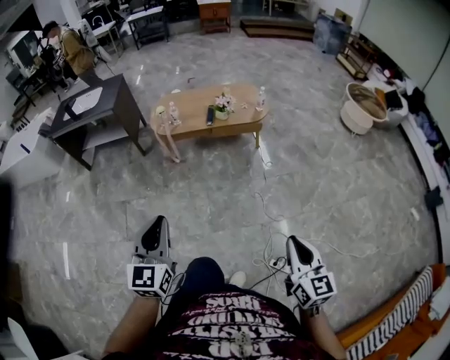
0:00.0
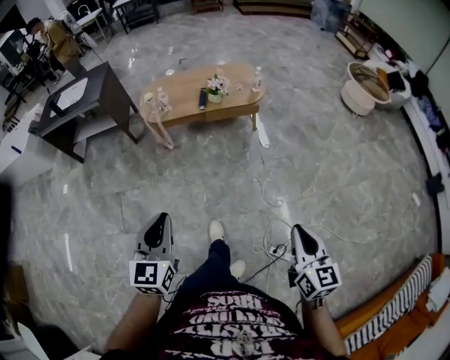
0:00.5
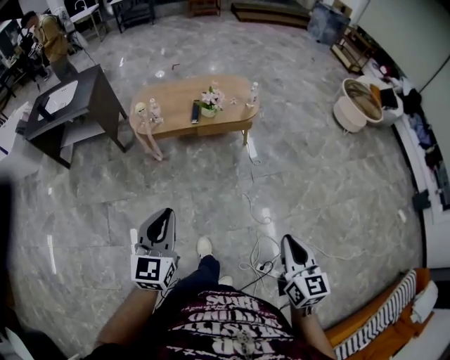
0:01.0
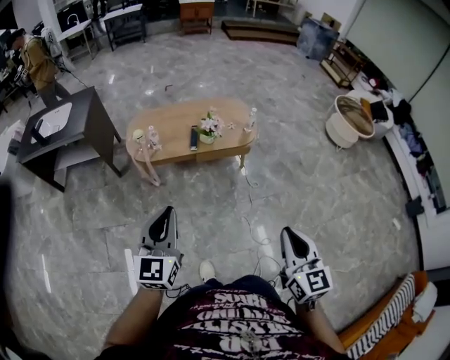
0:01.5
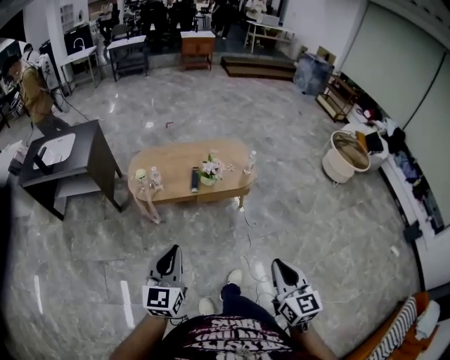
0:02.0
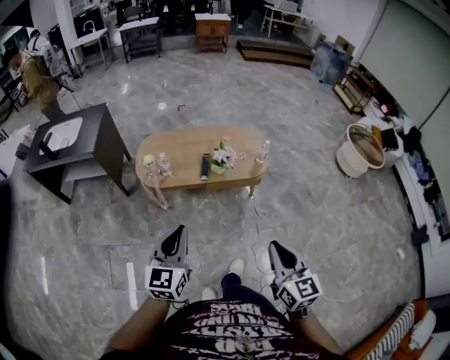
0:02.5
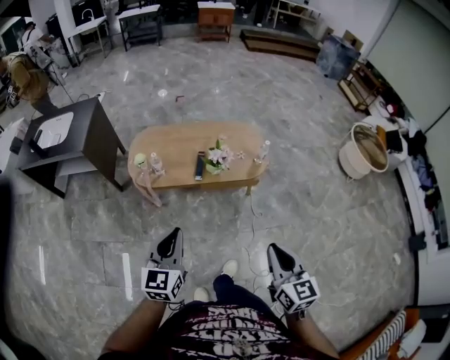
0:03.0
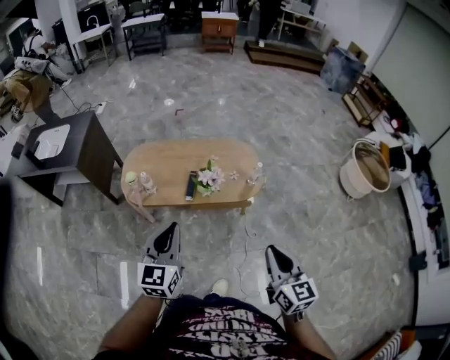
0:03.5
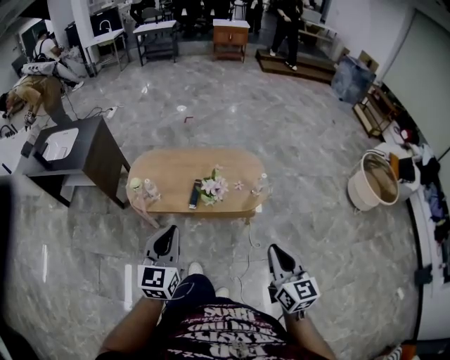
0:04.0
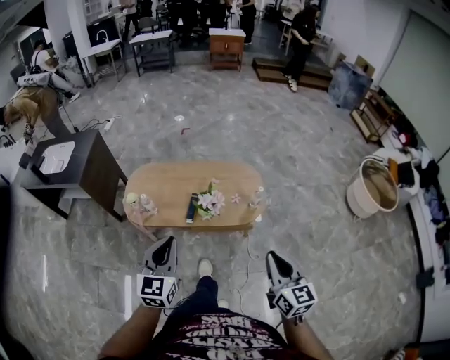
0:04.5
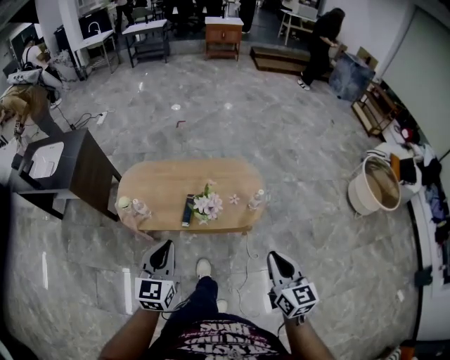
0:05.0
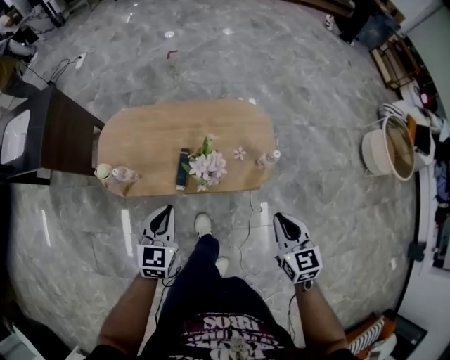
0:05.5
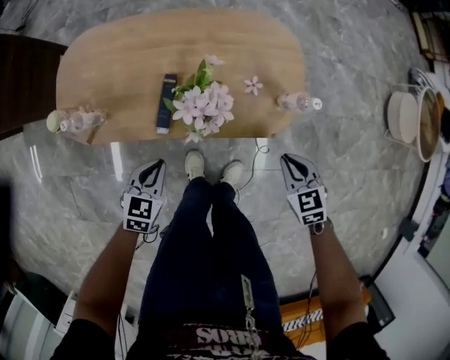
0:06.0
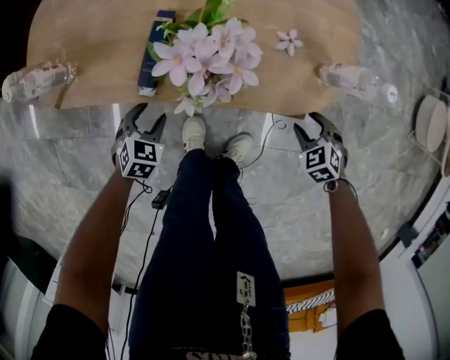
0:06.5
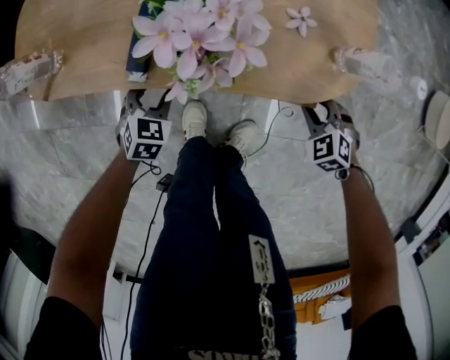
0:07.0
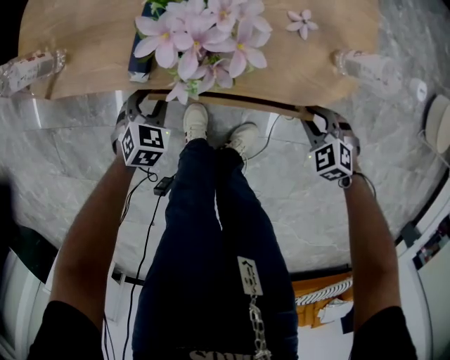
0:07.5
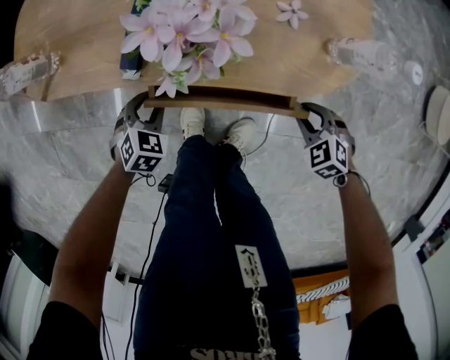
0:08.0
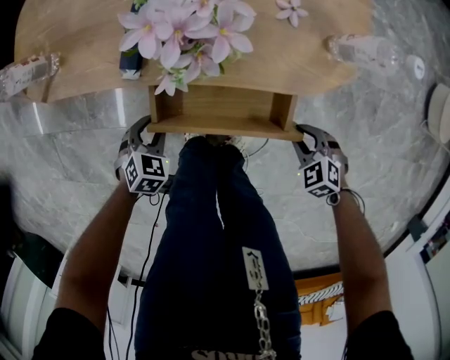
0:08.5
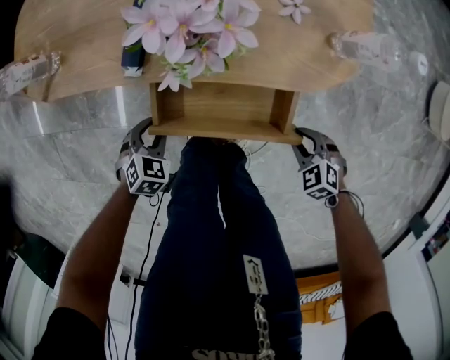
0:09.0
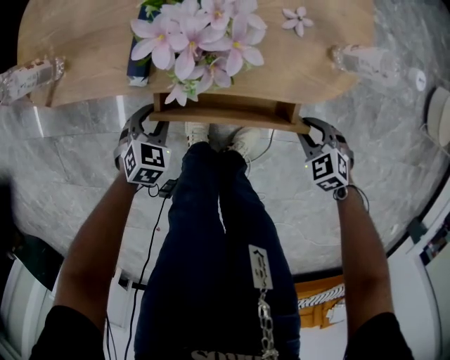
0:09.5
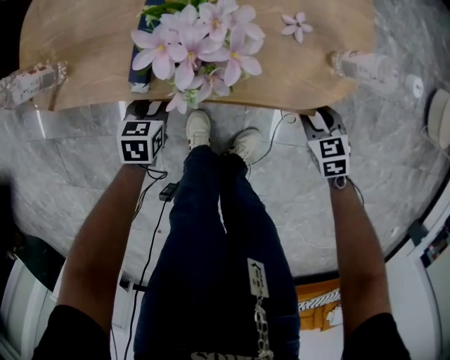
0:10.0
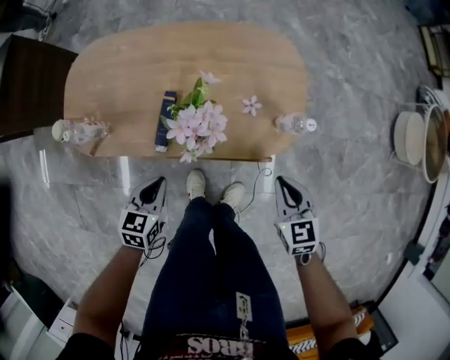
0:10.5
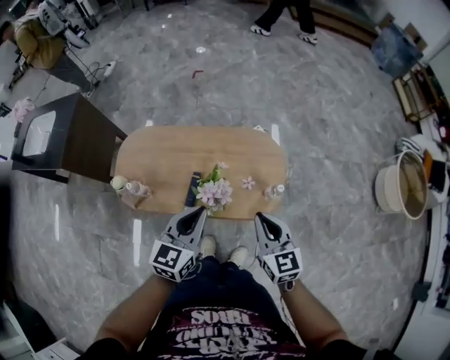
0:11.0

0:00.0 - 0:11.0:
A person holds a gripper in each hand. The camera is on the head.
0:00.0 - 0:02.0: Both grippers travel together forward, some 30 cm.
0:02.0 - 0:03.5: The right gripper goes roughly 25 cm forward. Meanwhile the left gripper travels forward and to the right by some 25 cm.
0:03.5 - 0:05.5: Both grippers move forward and downward, about 30 cm. The left gripper changes its angle by some 20 degrees.
0:05.5 - 0:07.5: The grippers both shift downward by roughly 50 cm. The left gripper points its fingers about 30 degrees further downward, and opens up, while the right gripper tips its fingers downward by about 30 degrees, and opens, then closes again.
0:07.5 - 0:09.0: Both grippers travel together backward, about 10 cm.
0:09.0 - 0:11.0: Both grippers travel together upward, approximately 60 cm. The right gripper points its fingers roughly 50 degrees further upward, while the left gripper points its fingers approximately 50 degrees further upward, and closes its fingers.

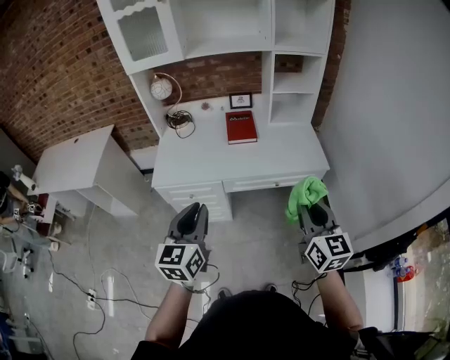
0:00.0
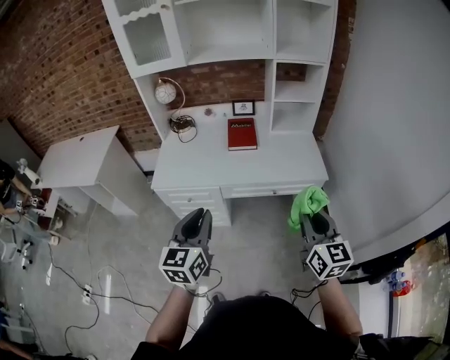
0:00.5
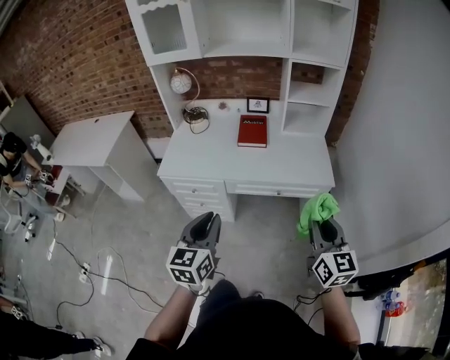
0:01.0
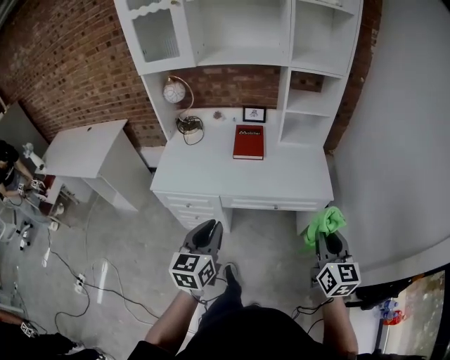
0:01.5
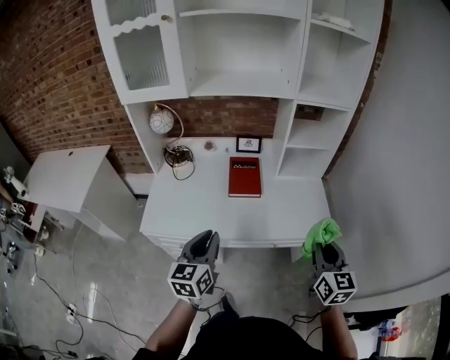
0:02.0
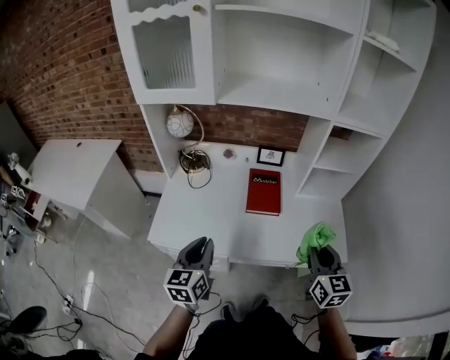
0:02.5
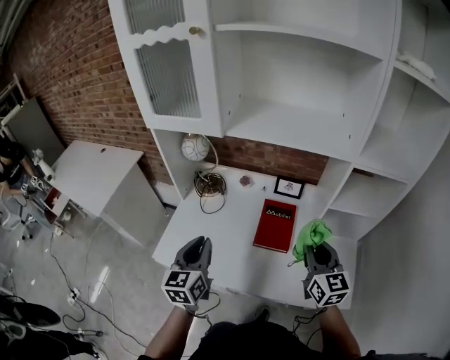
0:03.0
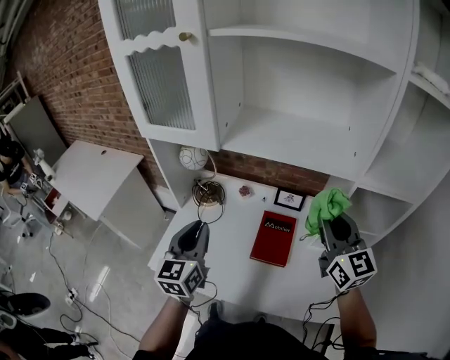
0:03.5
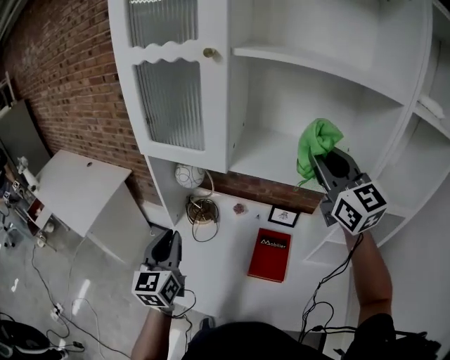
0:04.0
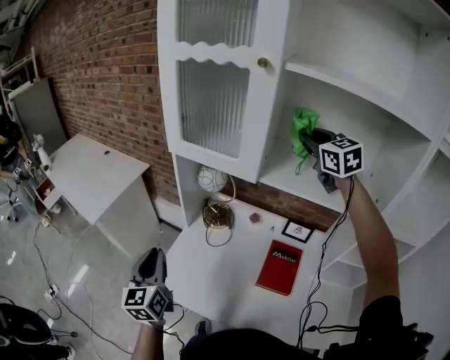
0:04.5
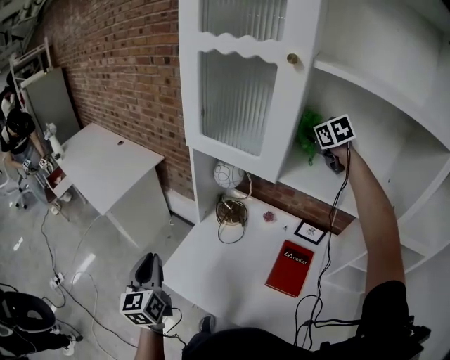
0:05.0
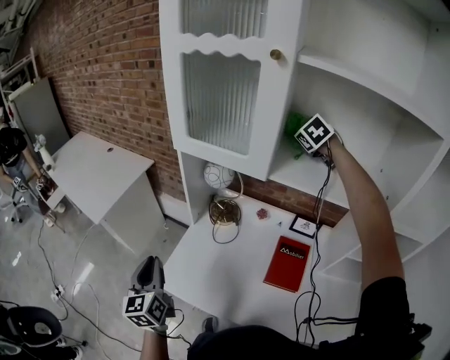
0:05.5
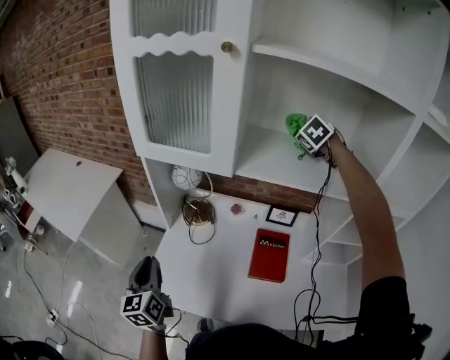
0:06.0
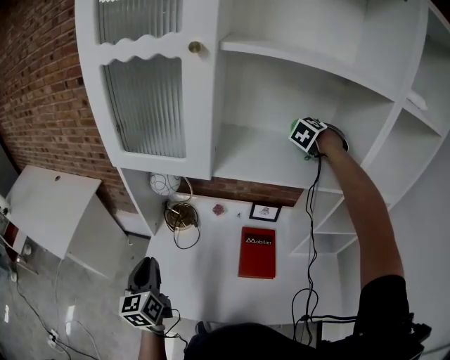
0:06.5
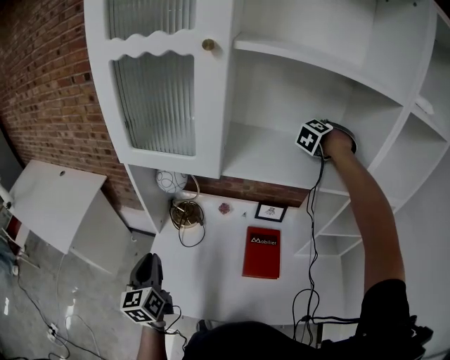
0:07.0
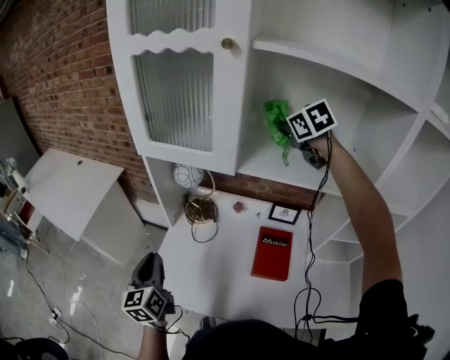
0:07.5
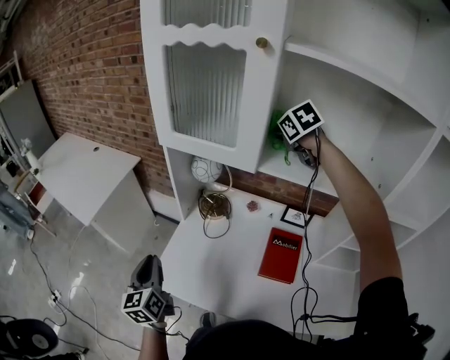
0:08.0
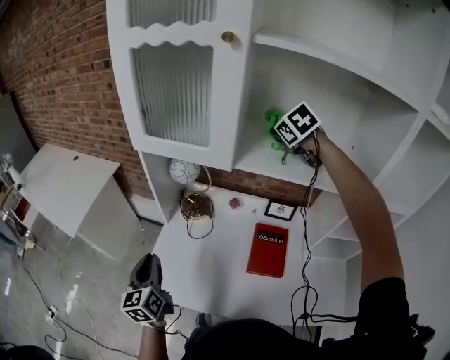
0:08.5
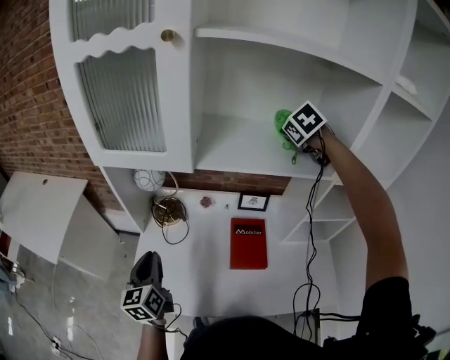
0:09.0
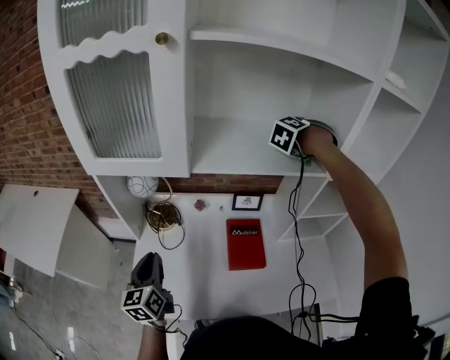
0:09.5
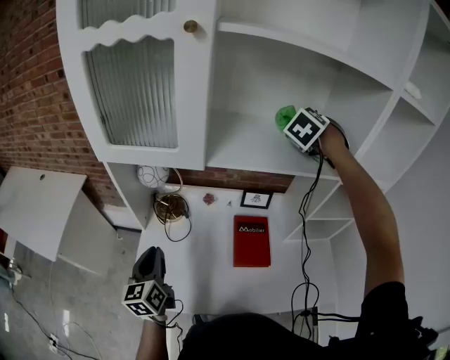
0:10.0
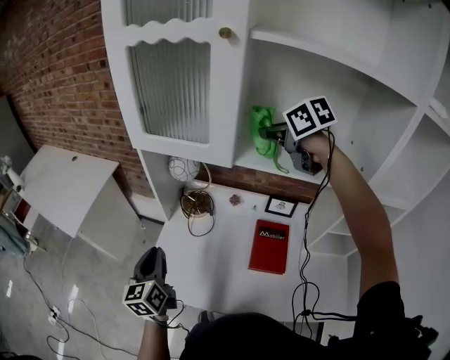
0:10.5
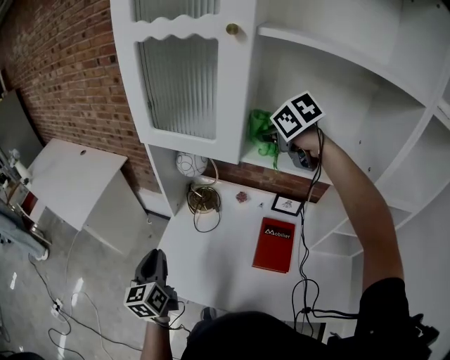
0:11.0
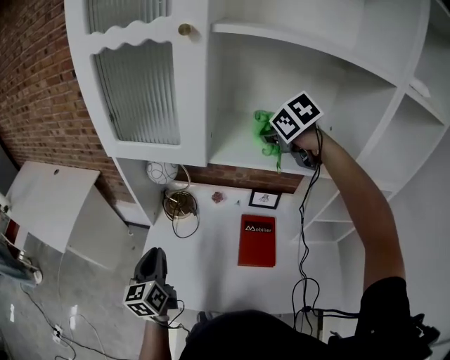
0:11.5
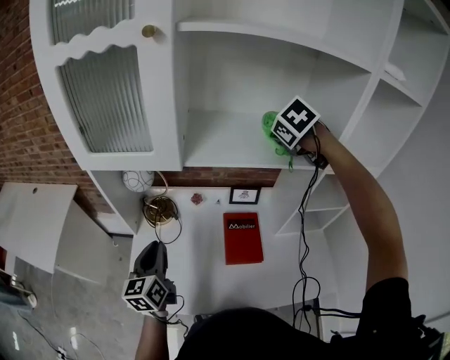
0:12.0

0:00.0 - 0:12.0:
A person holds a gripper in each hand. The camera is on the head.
0:00.0 - 0:02.0: The two grippers go approximately 20 cm forward.
0:02.0 - 0:04.0: The left gripper ends up roughly 35 cm from where it was, and swivels approximately 30 degrees, while the right gripper ends up roughly 60 cm from where it was, and swivels approximately 40 degrees.
0:04.0 - 0:06.0: The left gripper goes roughly 15 cm to the left and downward. Meanwhile the right gripper goes approximately 25 cm forward and downward, and points its fingers roughly 50 degrees further downward.
0:06.0 - 0:08.0: The right gripper shifts by some 15 cm, and rotates roughly 30 degrees.
0:08.0 - 0:10.0: The right gripper shifts by some 25 cm, and swivels about 40 degrees, while the left gripper moves some 15 cm, and rotates approximately 20 degrees.
0:10.0 - 0:12.0: The right gripper turns by approximately 30 degrees.

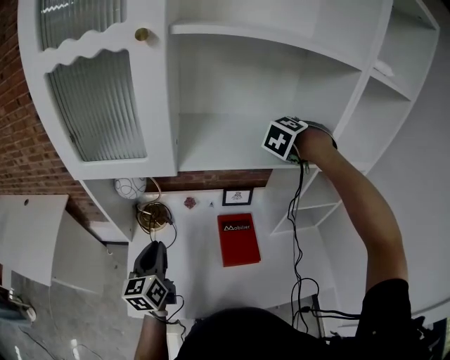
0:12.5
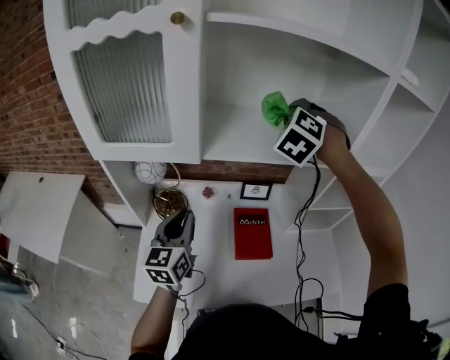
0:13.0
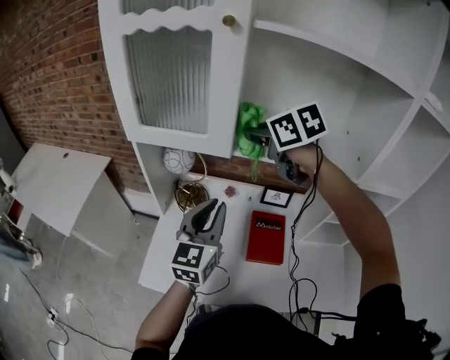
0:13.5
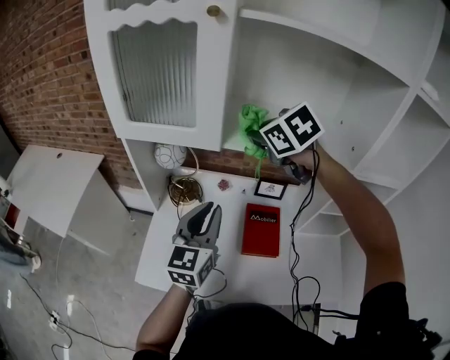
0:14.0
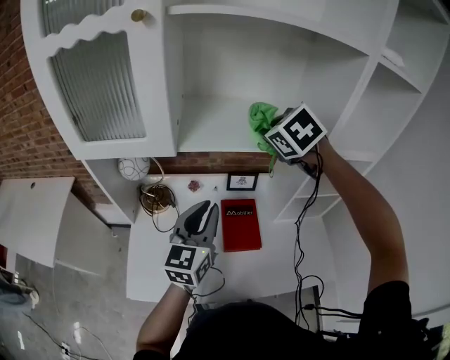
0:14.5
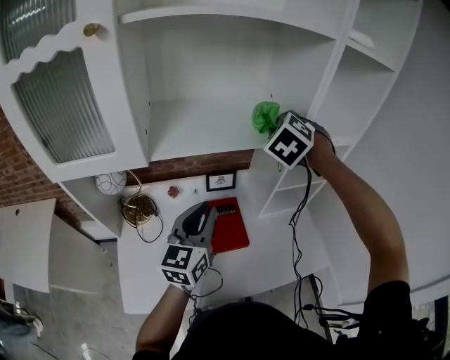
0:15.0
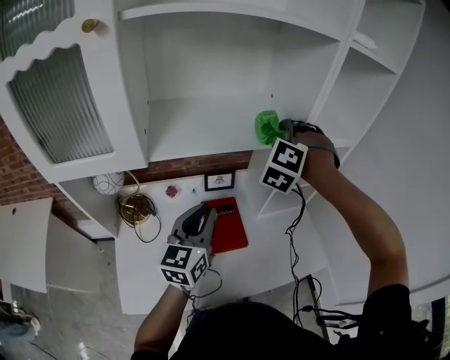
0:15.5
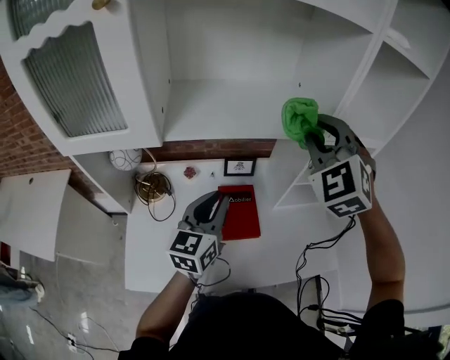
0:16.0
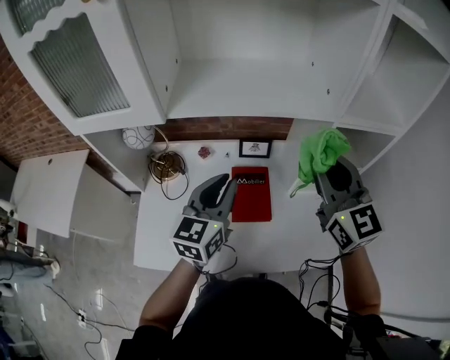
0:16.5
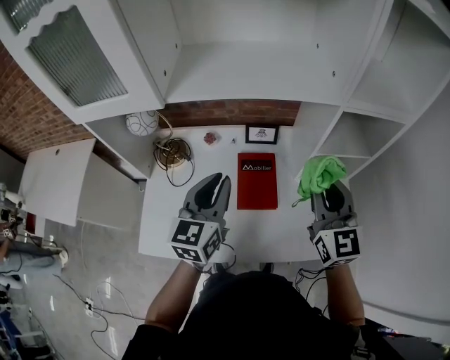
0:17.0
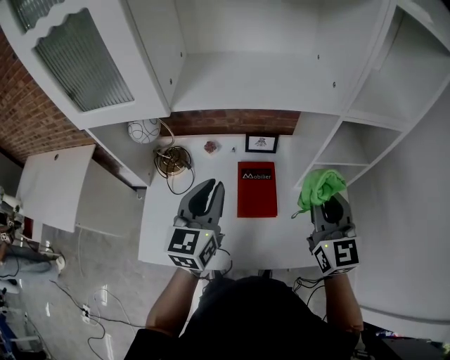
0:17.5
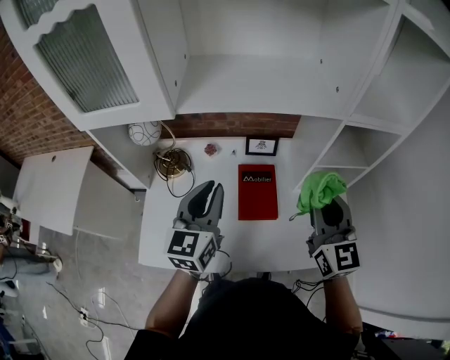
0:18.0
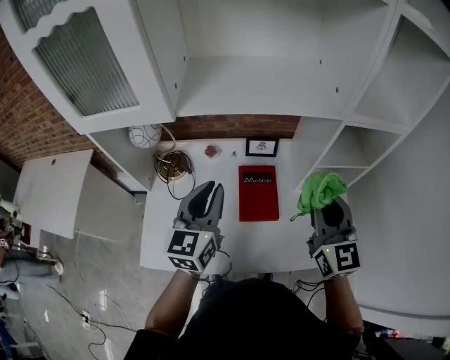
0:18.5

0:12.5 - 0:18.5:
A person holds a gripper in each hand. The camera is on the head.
0:12.5 - 0:14.5: The right gripper rotates some 50 degrees. The left gripper shifts by some 20 cm, and changes its angle by some 20 degrees.
0:14.5 - 0:16.5: The right gripper ends up roughly 20 cm from where it was, and tilts its fingers some 40 degrees upward. Meanwhile the left gripper moves approximately 5 cm.
0:16.5 - 0:18.5: The right gripper shifts roughly 10 cm downward and backward. The left gripper shifts some 5 cm to the left.
